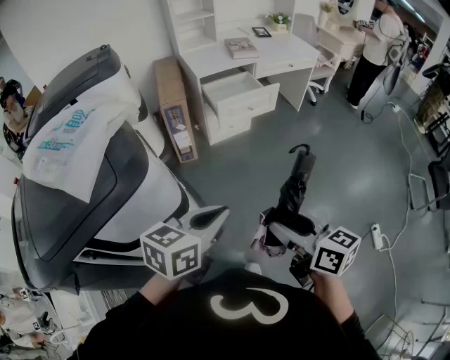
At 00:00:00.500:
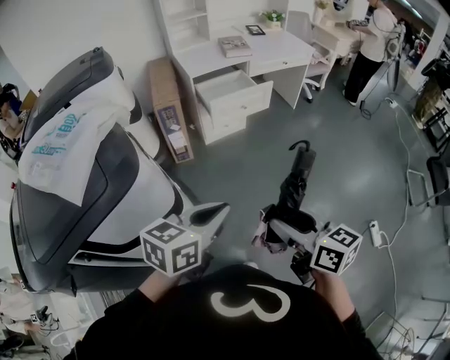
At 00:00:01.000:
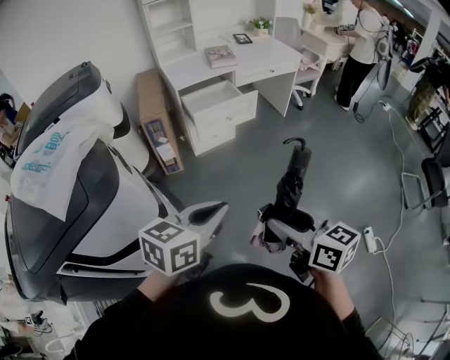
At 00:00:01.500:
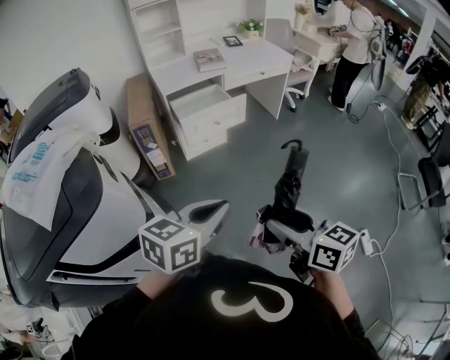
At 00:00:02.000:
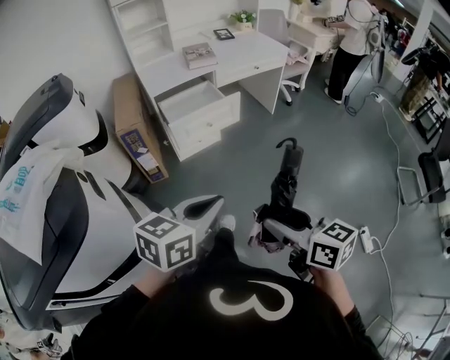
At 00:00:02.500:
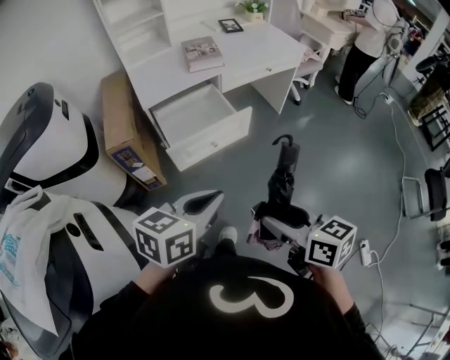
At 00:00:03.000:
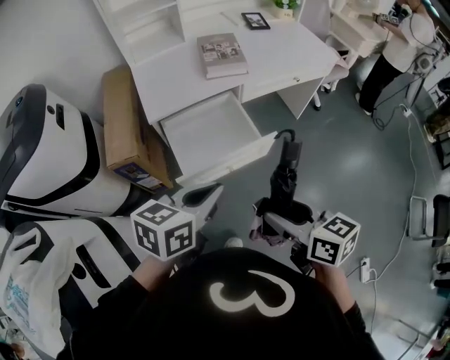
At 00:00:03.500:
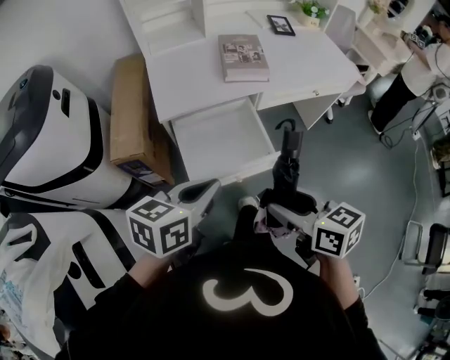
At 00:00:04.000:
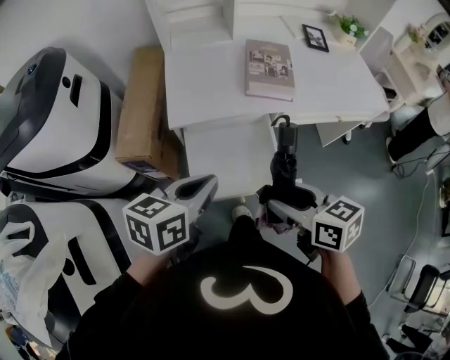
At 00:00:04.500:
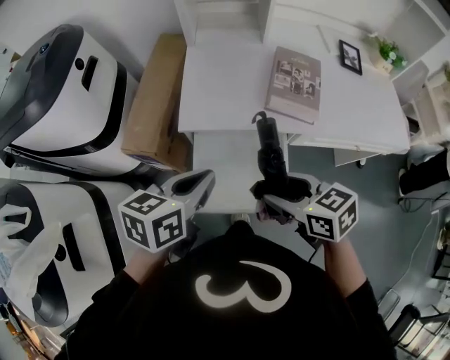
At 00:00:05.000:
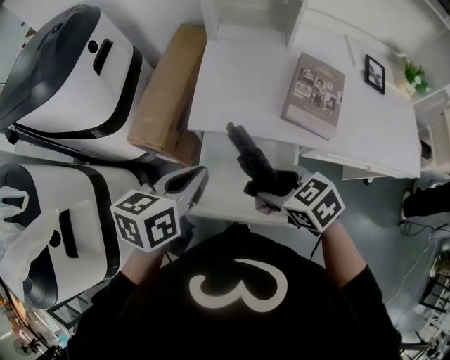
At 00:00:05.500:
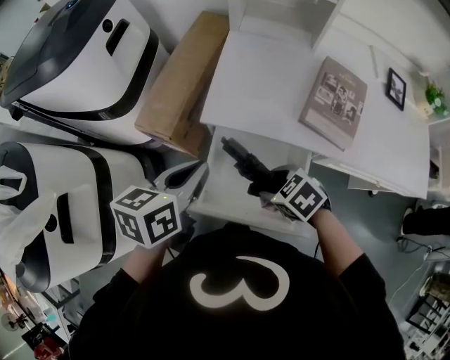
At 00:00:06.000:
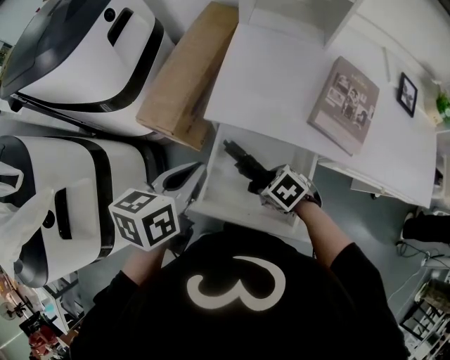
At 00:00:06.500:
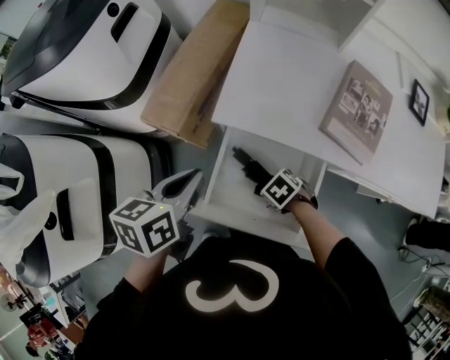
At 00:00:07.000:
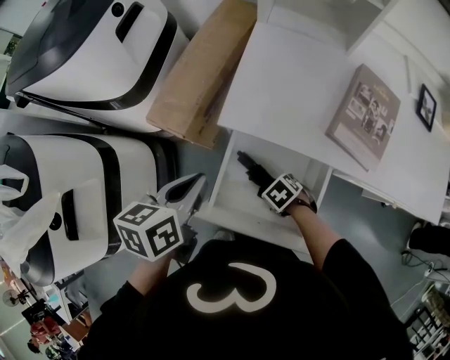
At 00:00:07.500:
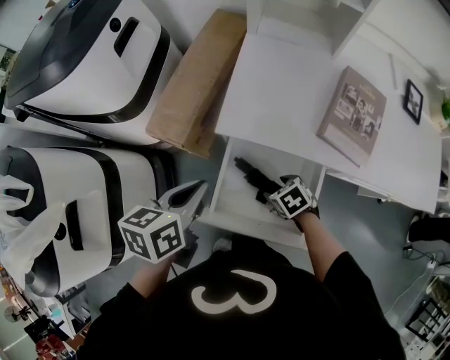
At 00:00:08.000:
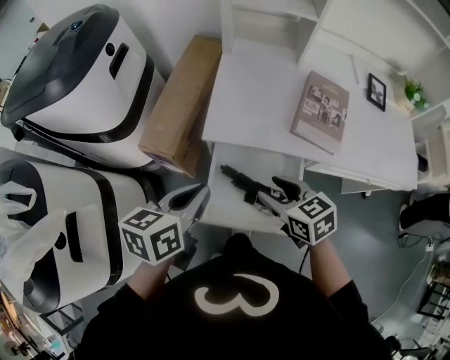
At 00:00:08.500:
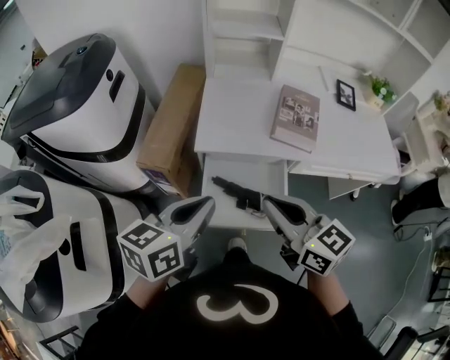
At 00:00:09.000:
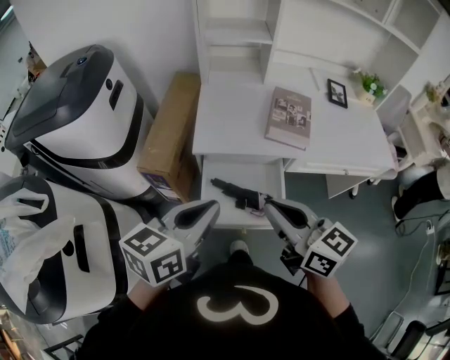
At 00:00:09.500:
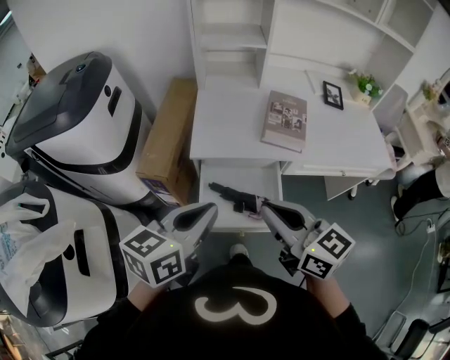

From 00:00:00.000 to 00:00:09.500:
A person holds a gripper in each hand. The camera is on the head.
From 00:00:00.000 to 00:00:02.000: The grippers both shift forward and to the right by roughly 20 cm.
From 00:00:02.000 to 00:00:04.000: The two grippers travel together, forward, some 60 cm. The left gripper swivels about 30 degrees; the right gripper rotates some 30 degrees.
From 00:00:04.000 to 00:00:05.500: The left gripper shifts by roughly 15 cm, and turns by approximately 30 degrees; the right gripper heads downward, covering roughly 15 cm, and points its fingers about 30 degrees further downward.
From 00:00:05.500 to 00:00:07.500: The left gripper shifts by approximately 5 cm. The right gripper heads downward, covering some 10 cm.
From 00:00:07.500 to 00:00:09.500: The left gripper moves upward, about 15 cm, and swivels roughly 30 degrees, while the right gripper shifts some 40 cm upward, angles its fingers upward, by roughly 60 degrees, and closes its fingers.

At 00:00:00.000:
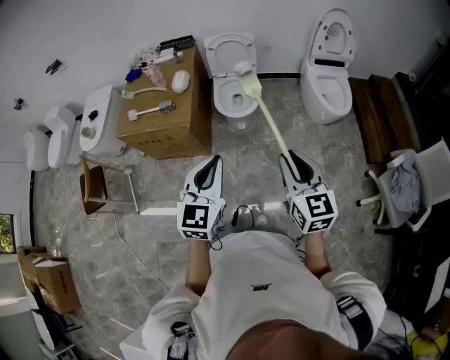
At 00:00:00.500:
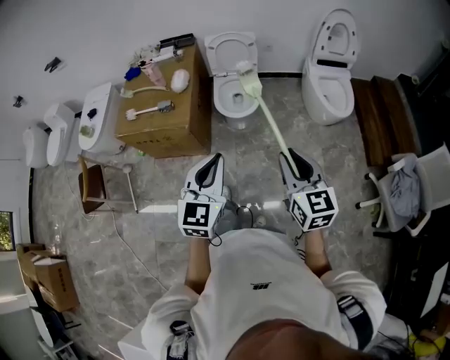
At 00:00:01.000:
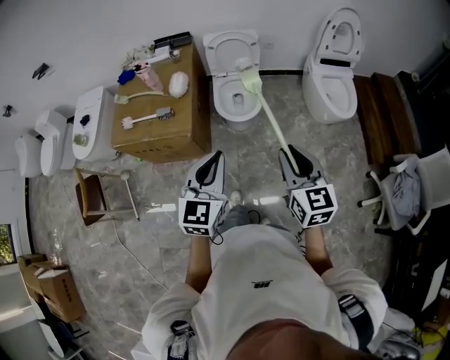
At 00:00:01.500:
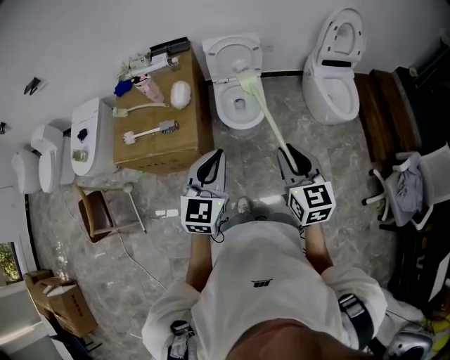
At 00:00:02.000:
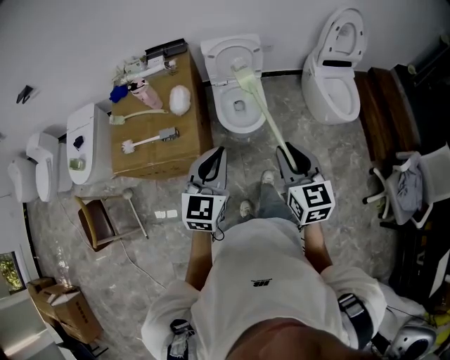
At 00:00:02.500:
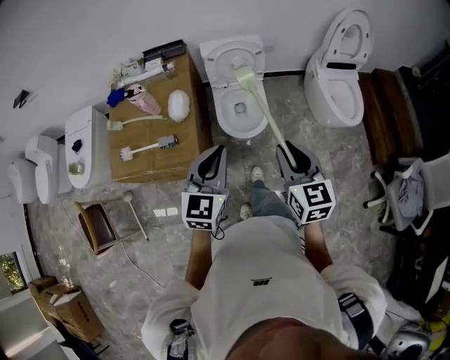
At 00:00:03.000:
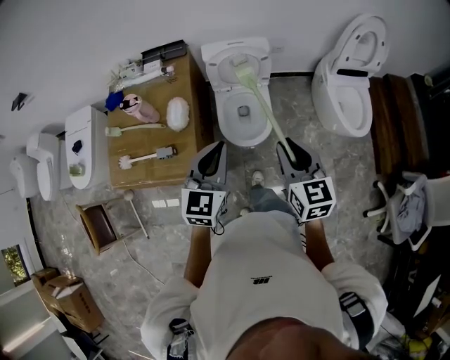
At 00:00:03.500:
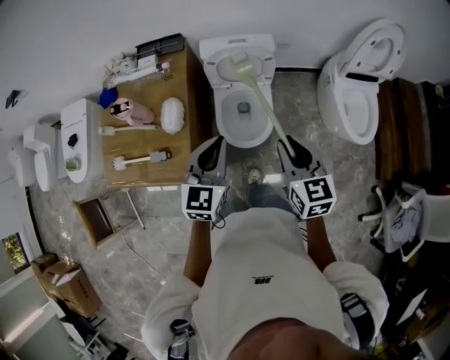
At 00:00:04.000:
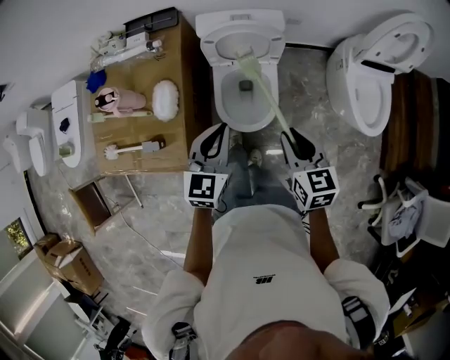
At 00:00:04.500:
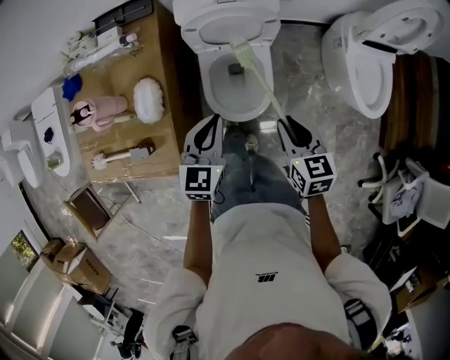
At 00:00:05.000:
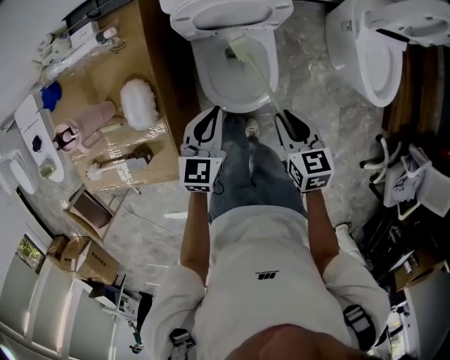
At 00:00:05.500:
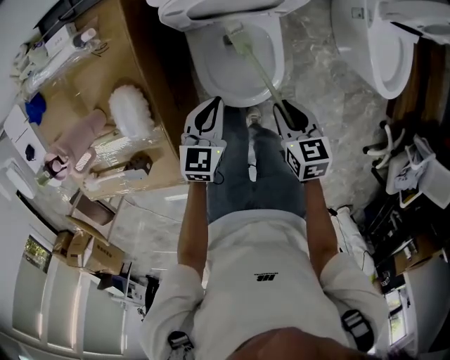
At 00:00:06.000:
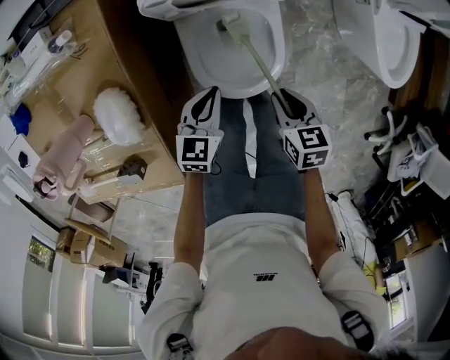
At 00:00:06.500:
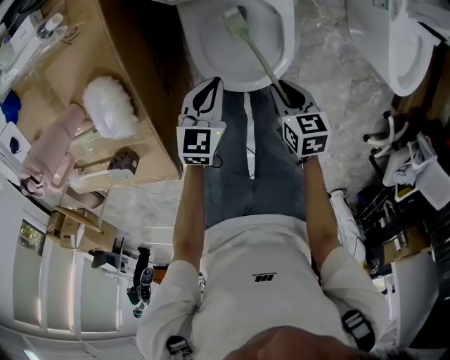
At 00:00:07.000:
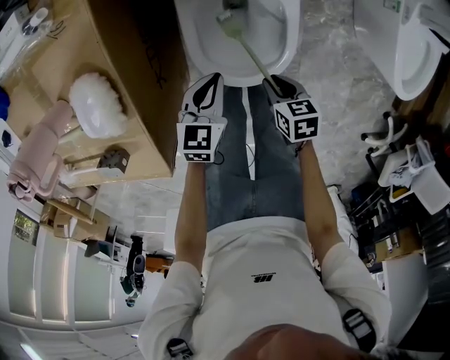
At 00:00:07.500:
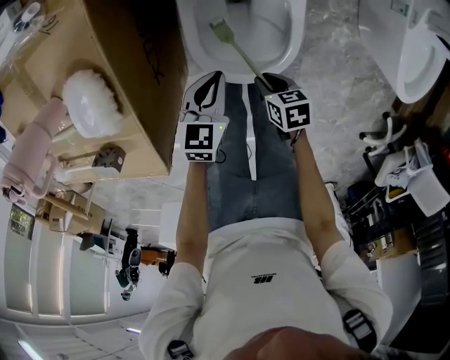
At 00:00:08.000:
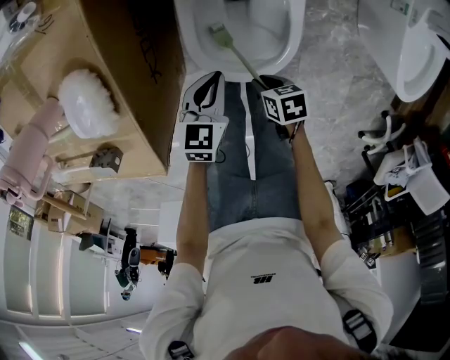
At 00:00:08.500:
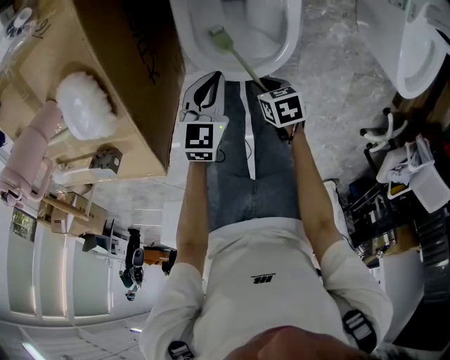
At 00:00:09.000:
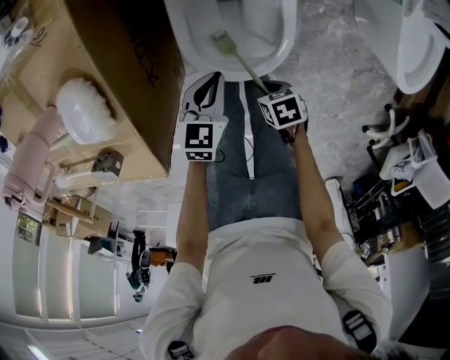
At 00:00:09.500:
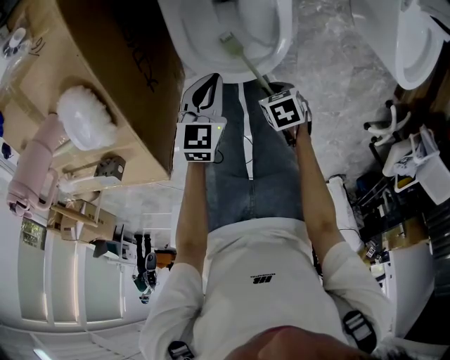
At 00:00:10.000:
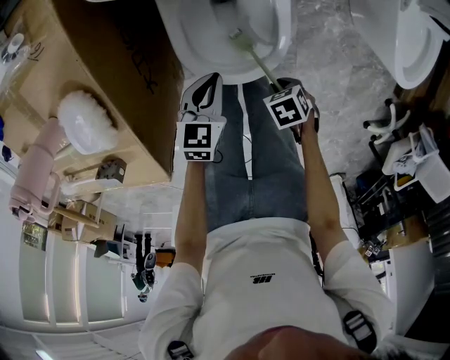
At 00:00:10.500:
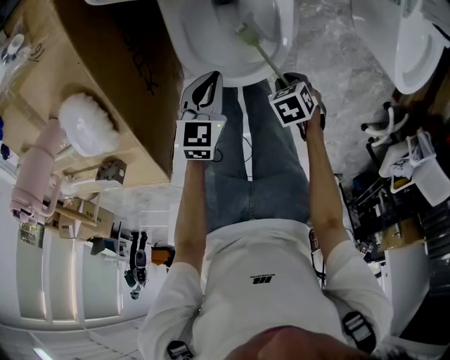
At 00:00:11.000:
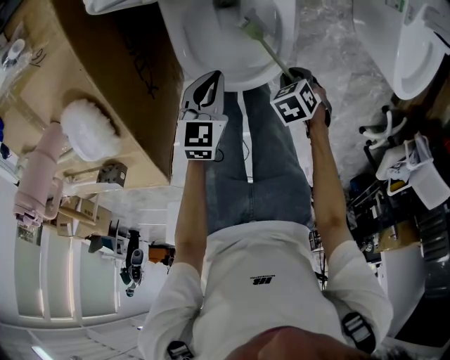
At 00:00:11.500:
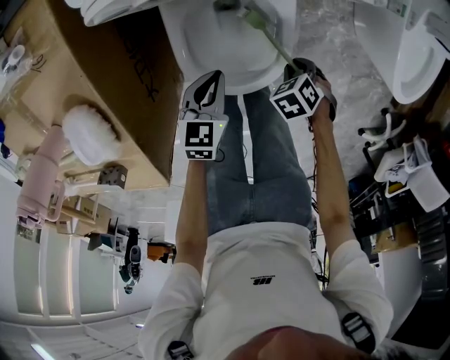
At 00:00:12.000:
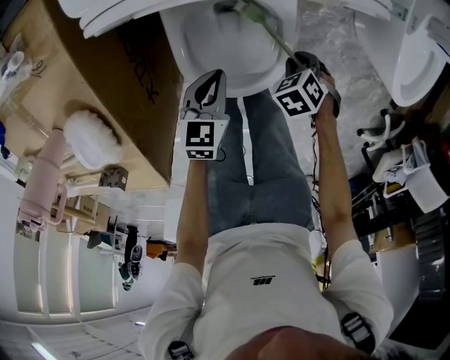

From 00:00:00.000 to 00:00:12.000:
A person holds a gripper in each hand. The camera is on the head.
From 00:00:00.000 to 00:00:02.000: The two grippers go roughly 30 cm forward and to the left.
From 00:00:02.000 to 00:00:04.000: Both grippers travel together forward and downward, about 35 cm. The right gripper swivels approximately 20 degrees.
From 00:00:04.000 to 00:00:06.000: The two grippers go approximately 35 cm downward. The left gripper swivels approximately 20 degrees, while the right gripper changes its angle by approximately 30 degrees.
From 00:00:06.000 to 00:00:08.000: The right gripper shifts roughly 20 cm downward, and turns by some 30 degrees. The left gripper travels downward by about 10 cm.
From 00:00:08.000 to 00:00:10.000: The right gripper changes place by approximately 5 cm, and changes its angle by roughly 20 degrees.
From 00:00:10.000 to 00:00:12.000: The left gripper shifts by approximately 5 cm; the right gripper moves about 15 cm, and changes its angle by some 20 degrees.

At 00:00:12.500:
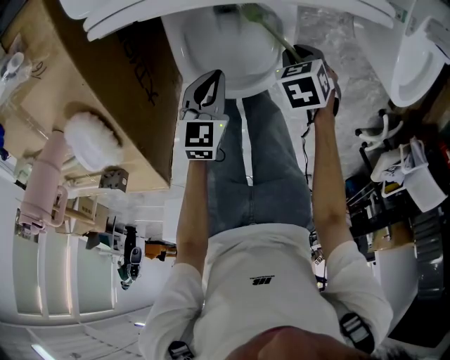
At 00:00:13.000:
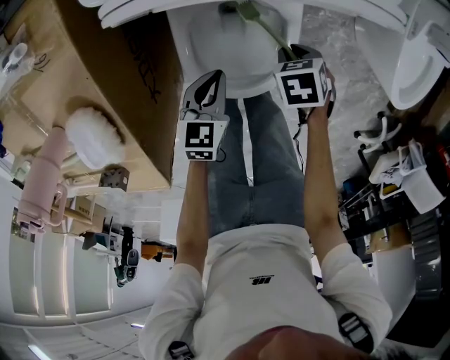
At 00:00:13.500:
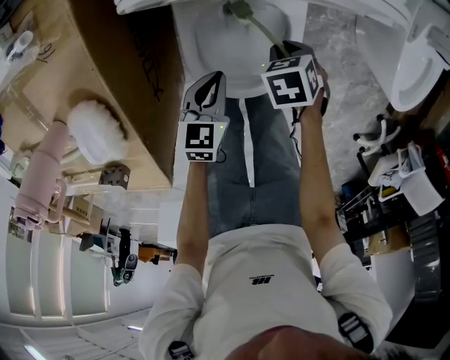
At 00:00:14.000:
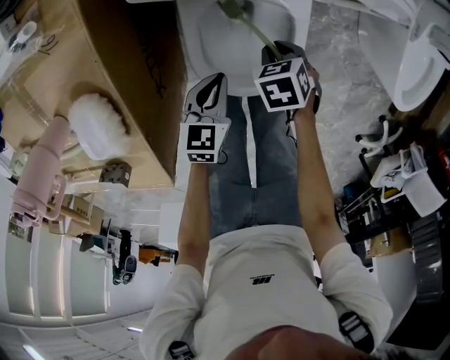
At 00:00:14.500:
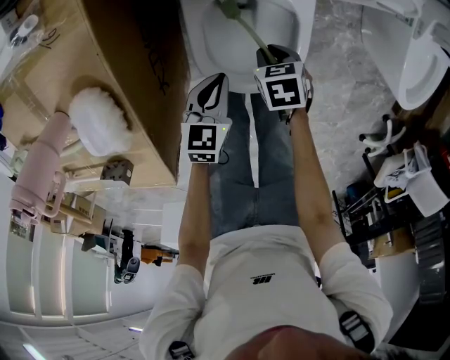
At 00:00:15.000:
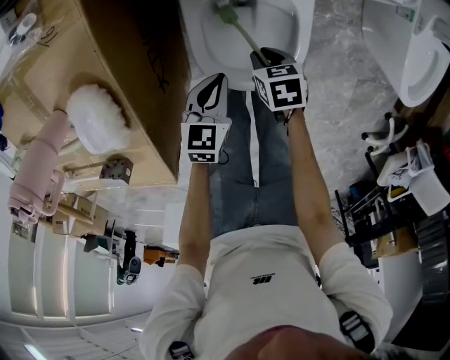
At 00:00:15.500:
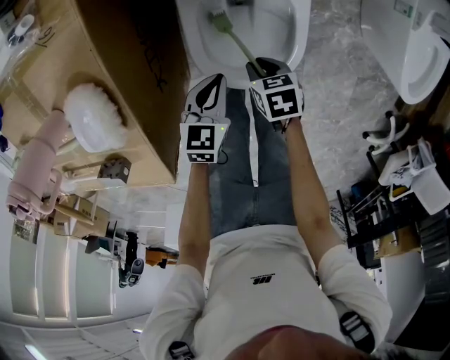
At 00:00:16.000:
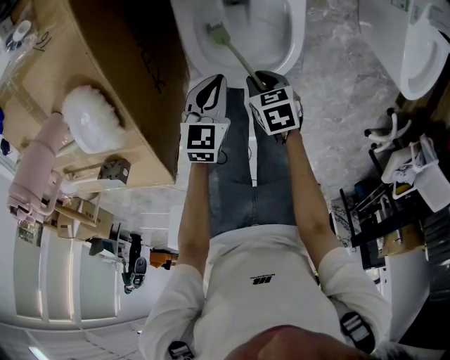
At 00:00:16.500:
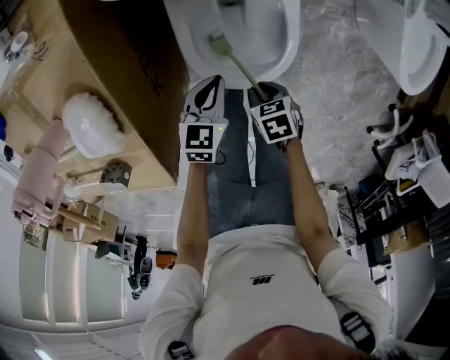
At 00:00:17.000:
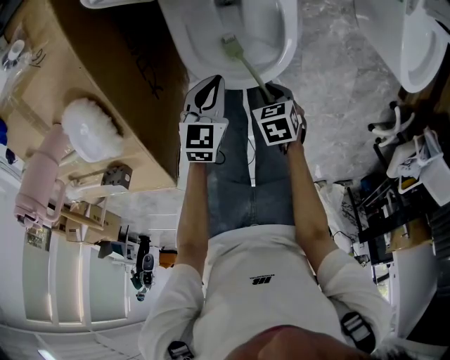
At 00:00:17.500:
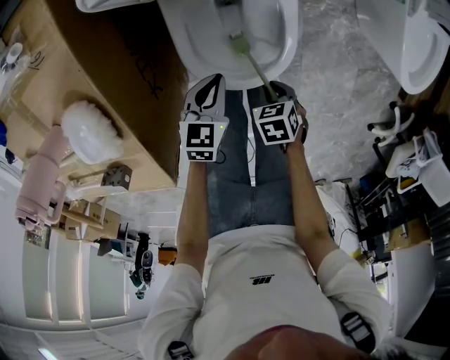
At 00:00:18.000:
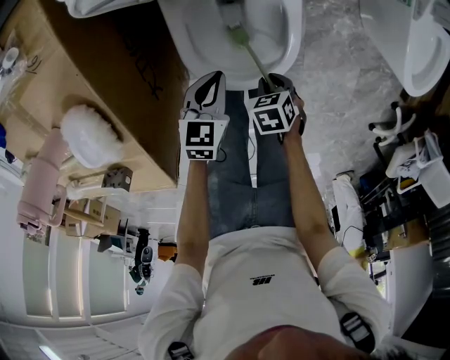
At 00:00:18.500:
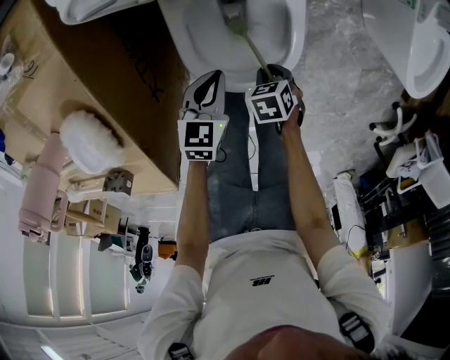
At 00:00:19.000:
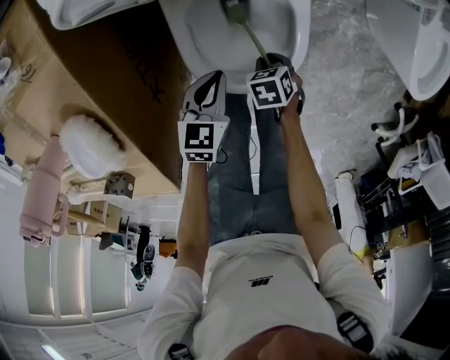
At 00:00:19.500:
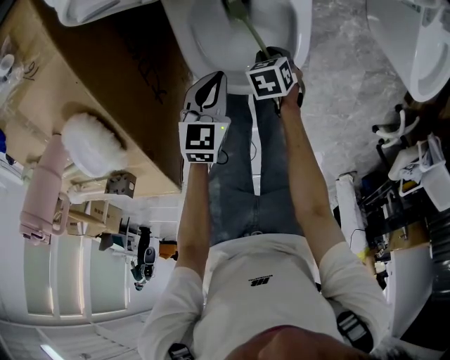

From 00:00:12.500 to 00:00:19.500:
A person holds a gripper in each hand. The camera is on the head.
From 00:00:12.500 to 00:00:14.500: The right gripper changes place by approximately 10 cm; the left gripper shifts by about 5 cm.
From 00:00:14.500 to 00:00:16.000: The right gripper shifts by approximately 10 cm.
From 00:00:16.000 to 00:00:17.500: The right gripper changes place by some 5 cm.
From 00:00:17.500 to 00:00:19.500: The right gripper travels downward by about 10 cm.
